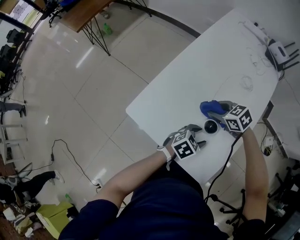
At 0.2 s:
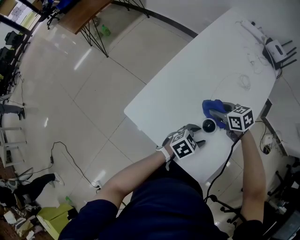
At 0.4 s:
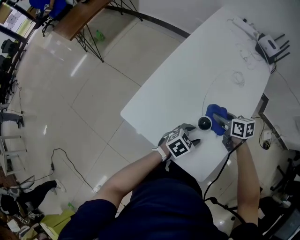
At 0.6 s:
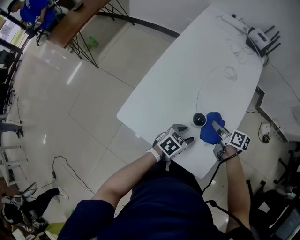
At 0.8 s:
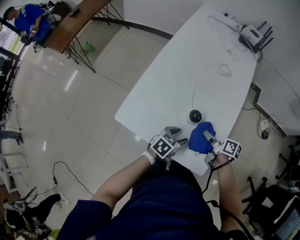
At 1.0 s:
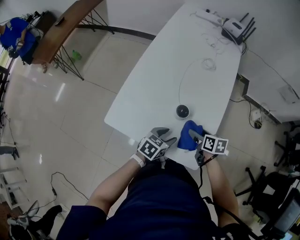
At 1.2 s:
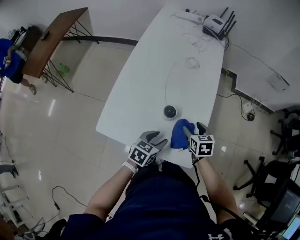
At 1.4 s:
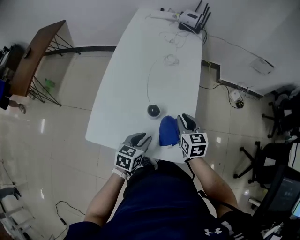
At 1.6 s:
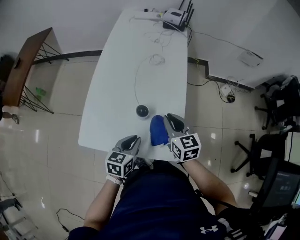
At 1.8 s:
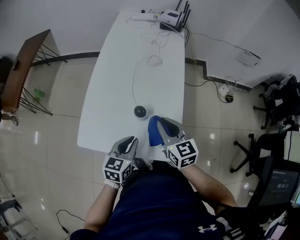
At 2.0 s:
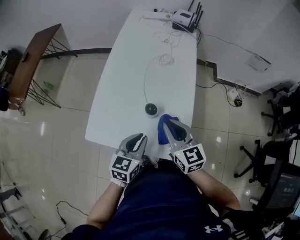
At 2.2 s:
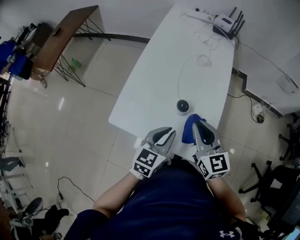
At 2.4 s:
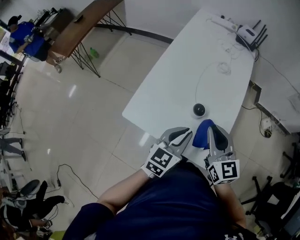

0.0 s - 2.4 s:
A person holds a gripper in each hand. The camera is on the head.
0.0 s - 1.2 s: The left gripper moves some 10 cm. Meanwhile the right gripper moves some 20 cm, and rotates some 60 degrees.
1.2 s - 2.4 s: The right gripper goes roughly 20 cm upward, points its fingers approximately 40 degrees further upward, and closes up. Meanwhile the left gripper heads upward, covering some 15 cm, rotates some 30 degrees, and closes up.

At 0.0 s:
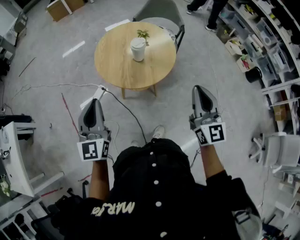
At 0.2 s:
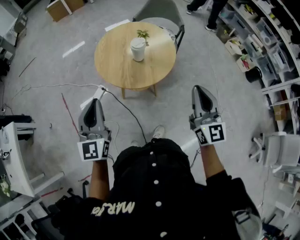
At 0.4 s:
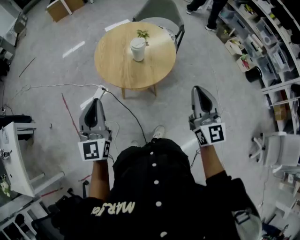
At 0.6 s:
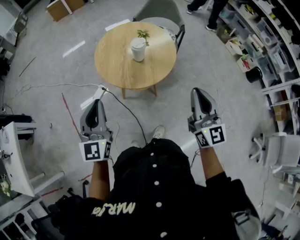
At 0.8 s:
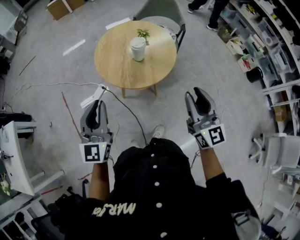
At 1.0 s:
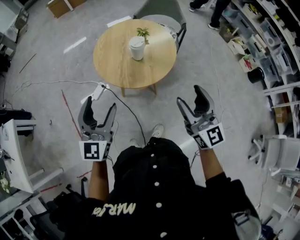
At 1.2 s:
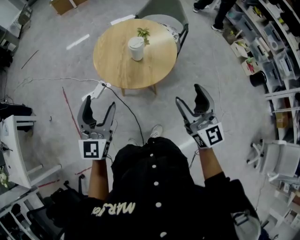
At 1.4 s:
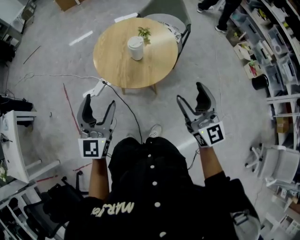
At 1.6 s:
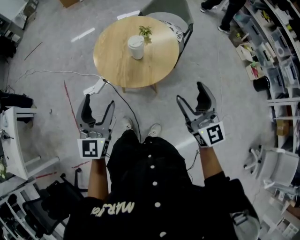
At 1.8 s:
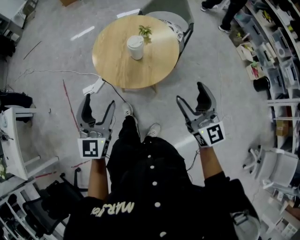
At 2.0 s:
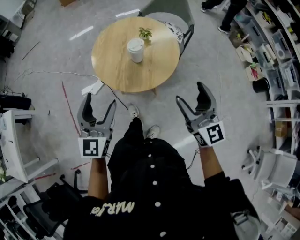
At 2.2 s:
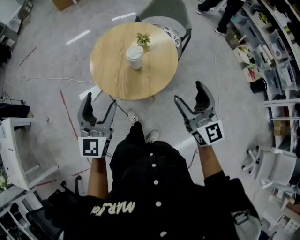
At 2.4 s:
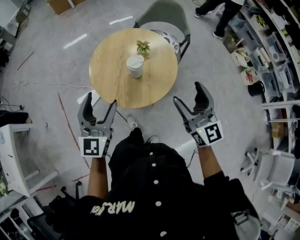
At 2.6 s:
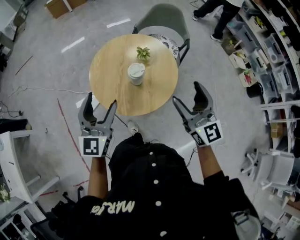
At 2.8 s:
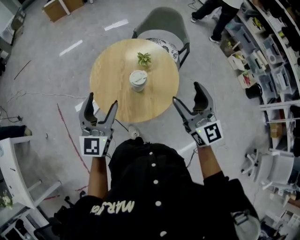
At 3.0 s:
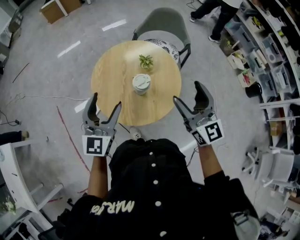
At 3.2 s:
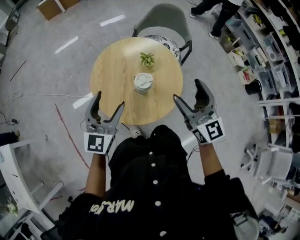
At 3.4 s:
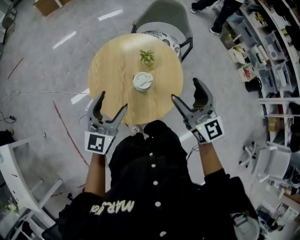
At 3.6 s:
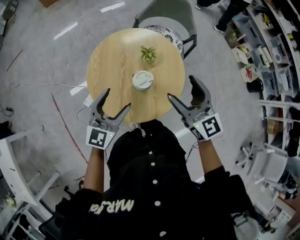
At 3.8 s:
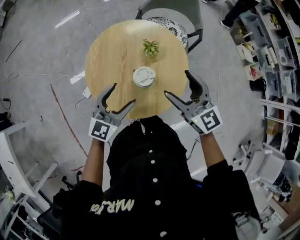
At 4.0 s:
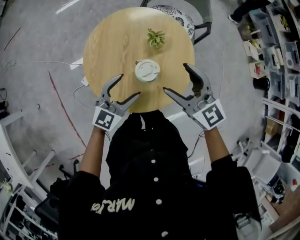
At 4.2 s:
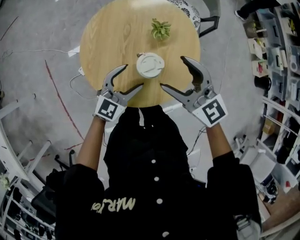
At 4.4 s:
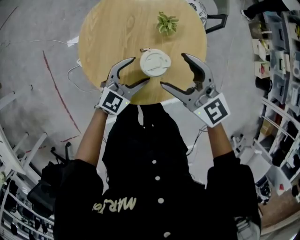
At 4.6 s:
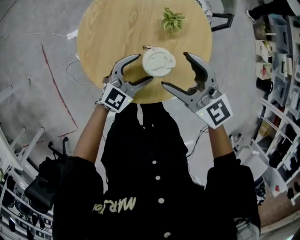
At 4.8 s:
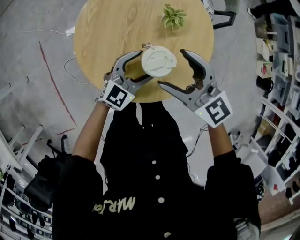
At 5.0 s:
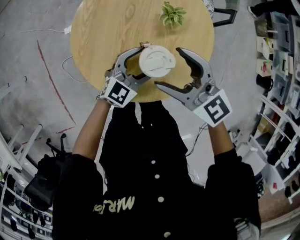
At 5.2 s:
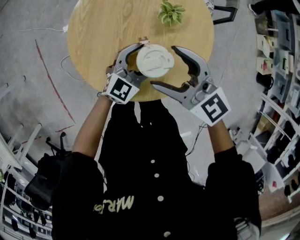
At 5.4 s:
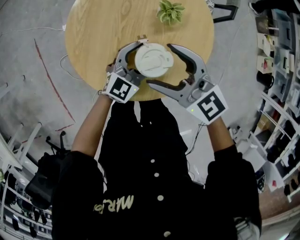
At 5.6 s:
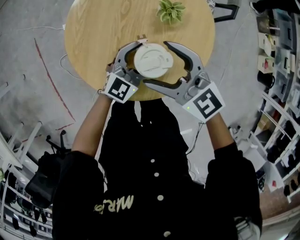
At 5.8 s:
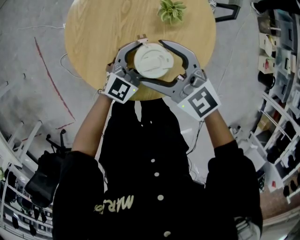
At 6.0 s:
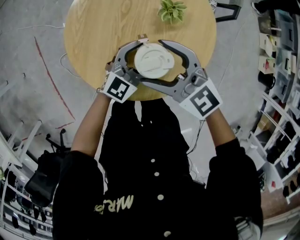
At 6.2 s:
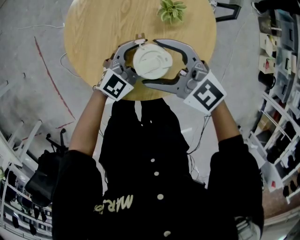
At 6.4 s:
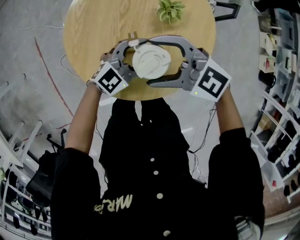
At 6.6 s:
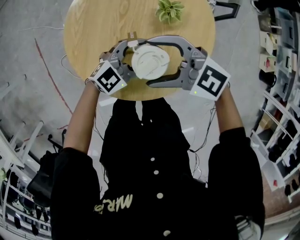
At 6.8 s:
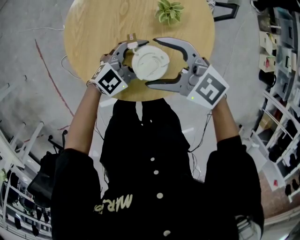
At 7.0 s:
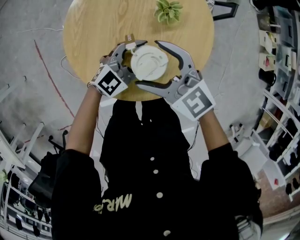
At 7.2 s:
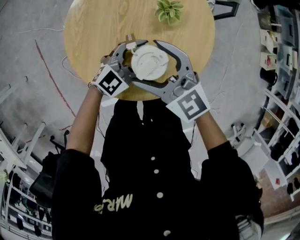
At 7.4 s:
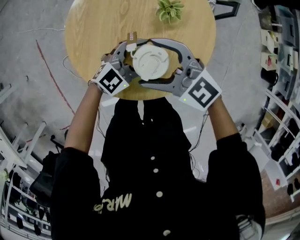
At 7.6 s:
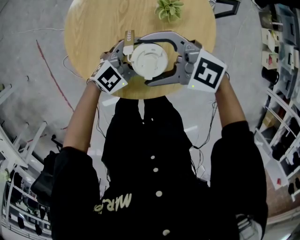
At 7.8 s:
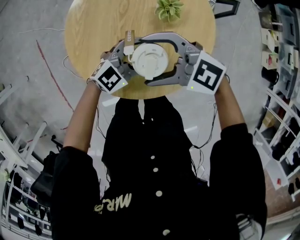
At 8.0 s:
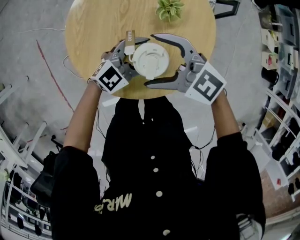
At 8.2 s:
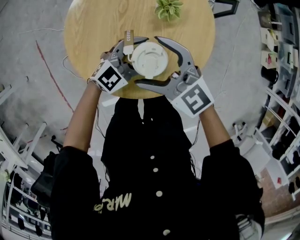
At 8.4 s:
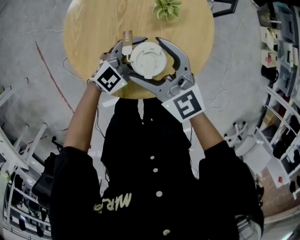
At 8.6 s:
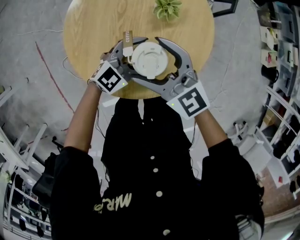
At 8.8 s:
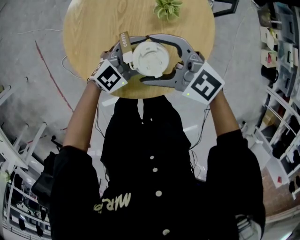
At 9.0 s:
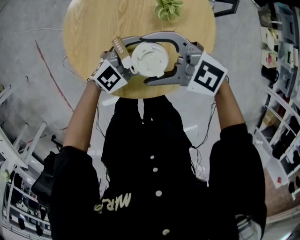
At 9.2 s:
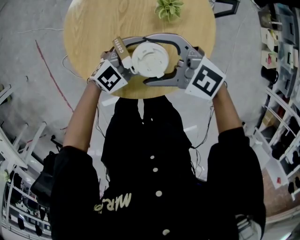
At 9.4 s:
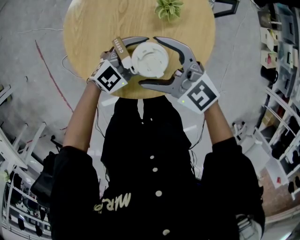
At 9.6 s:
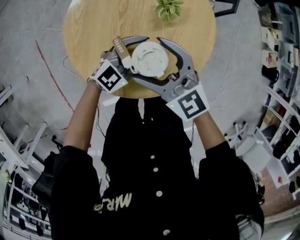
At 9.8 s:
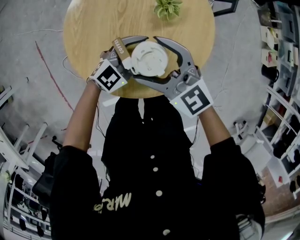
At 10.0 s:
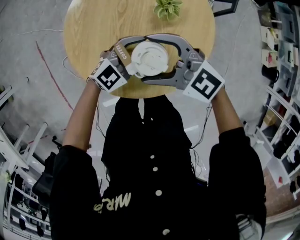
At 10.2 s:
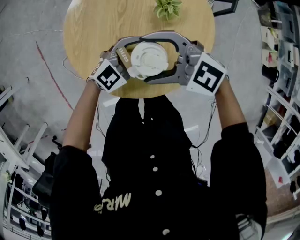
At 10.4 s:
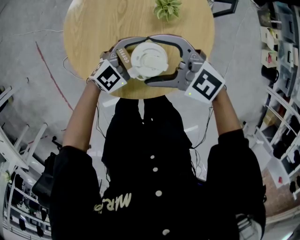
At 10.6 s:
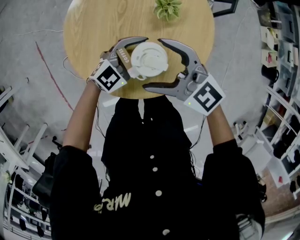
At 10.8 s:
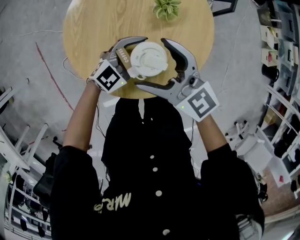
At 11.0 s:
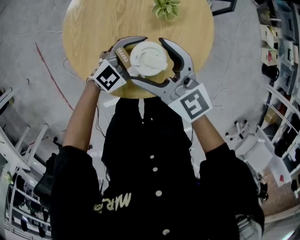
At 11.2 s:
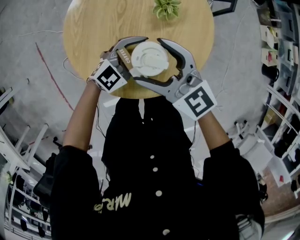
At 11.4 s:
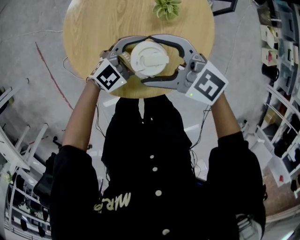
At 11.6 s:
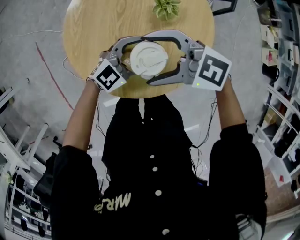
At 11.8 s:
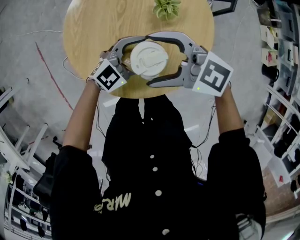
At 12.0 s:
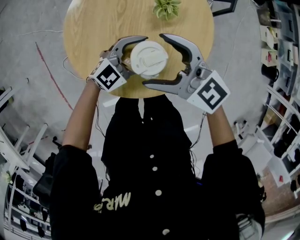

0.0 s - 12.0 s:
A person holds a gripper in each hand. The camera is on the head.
0.0 s - 1.6 s: The right gripper shifts roughly 5 cm forward, and opens up. The left gripper is displaced to the right by some 10 cm, and opens its fingers.
1.6 s - 3.0 s: The grippers both shift forward by about 25 cm.
3.0 s - 4.4 s: The right gripper moves downward, forward and to the left, some 25 cm, and swivels some 40 degrees; the left gripper heads downward and to the right, covering approximately 30 cm, and turns by approximately 30 degrees.
4.4 s - 6.0 s: The left gripper moves to the right, roughly 5 cm, while the right gripper moves downward and to the left, approximately 10 cm.
6.0 s - 7.6 s: The right gripper rotates about 30 degrees; the left gripper rotates approximately 20 degrees.

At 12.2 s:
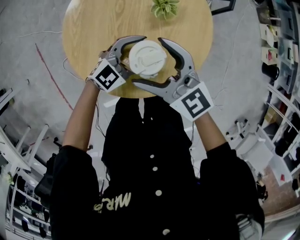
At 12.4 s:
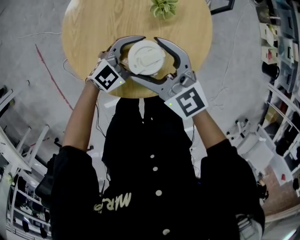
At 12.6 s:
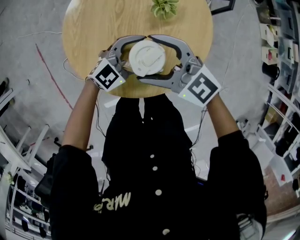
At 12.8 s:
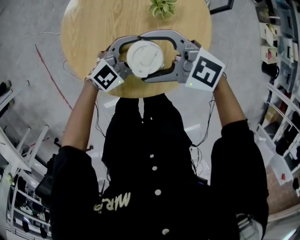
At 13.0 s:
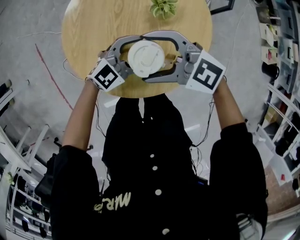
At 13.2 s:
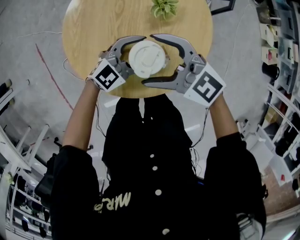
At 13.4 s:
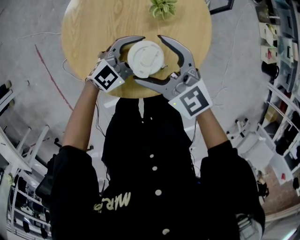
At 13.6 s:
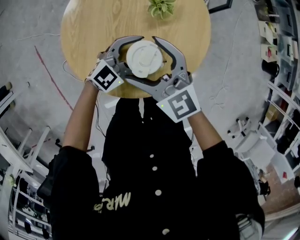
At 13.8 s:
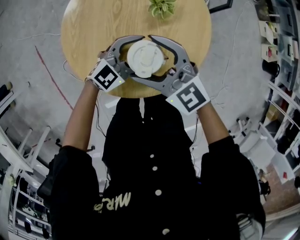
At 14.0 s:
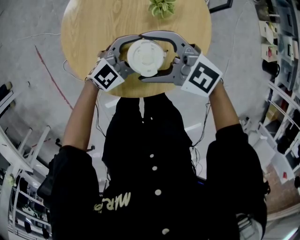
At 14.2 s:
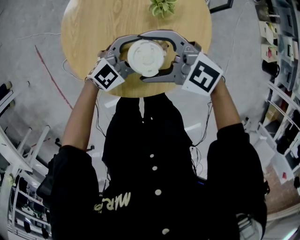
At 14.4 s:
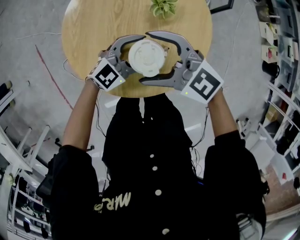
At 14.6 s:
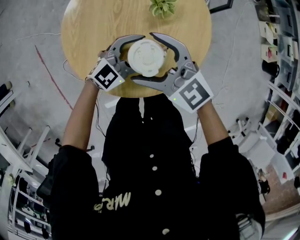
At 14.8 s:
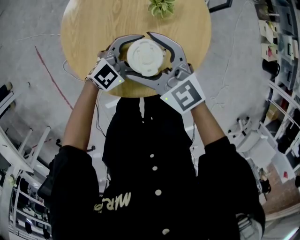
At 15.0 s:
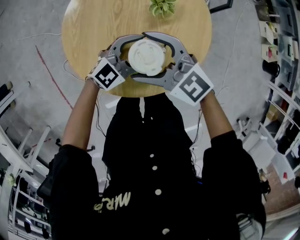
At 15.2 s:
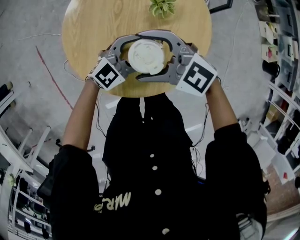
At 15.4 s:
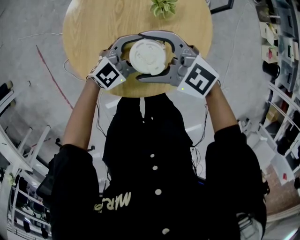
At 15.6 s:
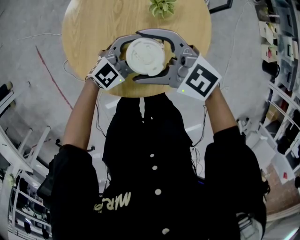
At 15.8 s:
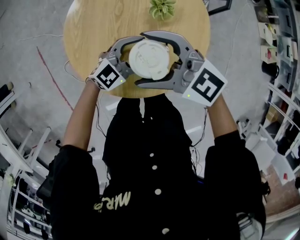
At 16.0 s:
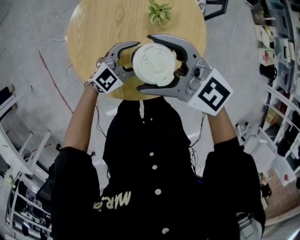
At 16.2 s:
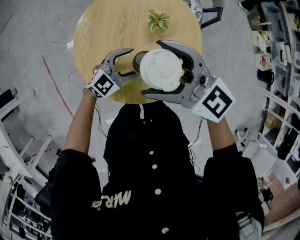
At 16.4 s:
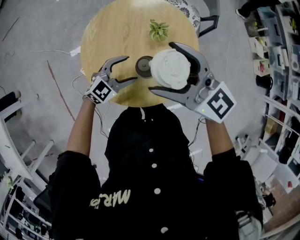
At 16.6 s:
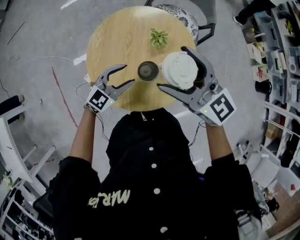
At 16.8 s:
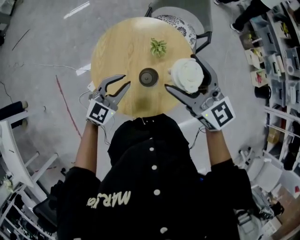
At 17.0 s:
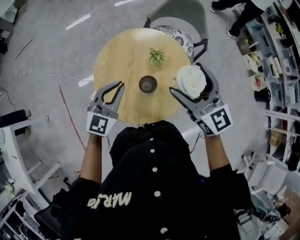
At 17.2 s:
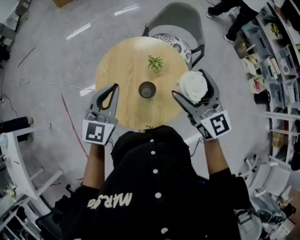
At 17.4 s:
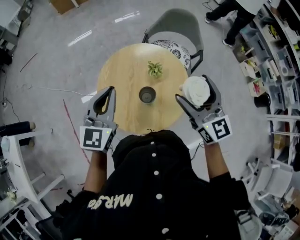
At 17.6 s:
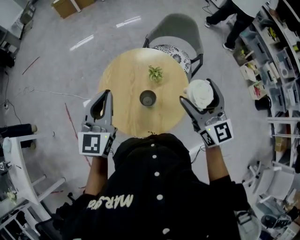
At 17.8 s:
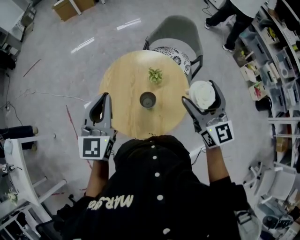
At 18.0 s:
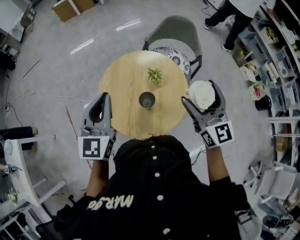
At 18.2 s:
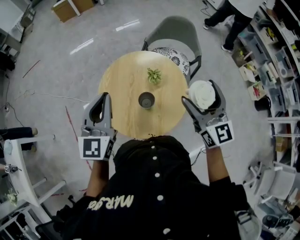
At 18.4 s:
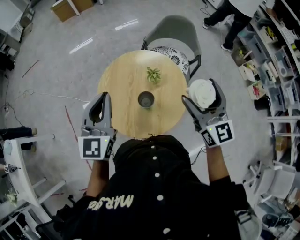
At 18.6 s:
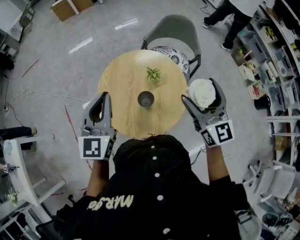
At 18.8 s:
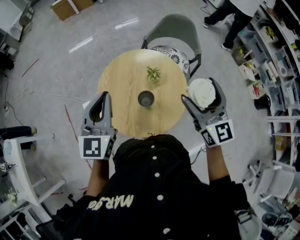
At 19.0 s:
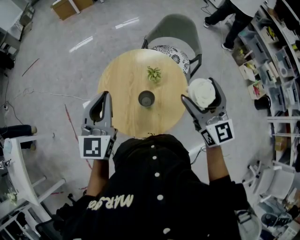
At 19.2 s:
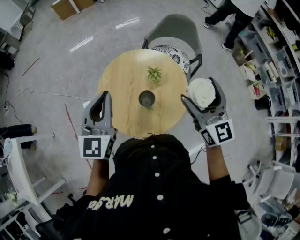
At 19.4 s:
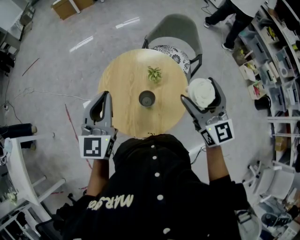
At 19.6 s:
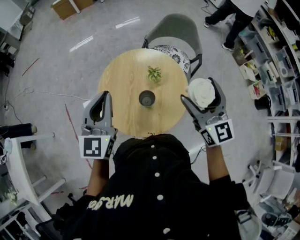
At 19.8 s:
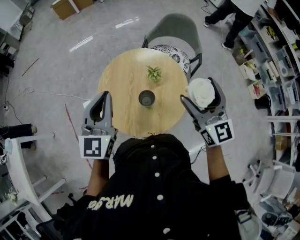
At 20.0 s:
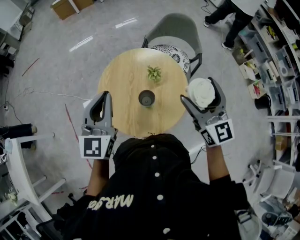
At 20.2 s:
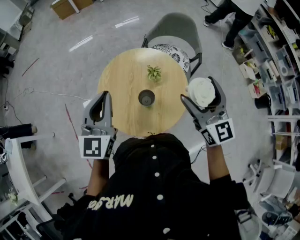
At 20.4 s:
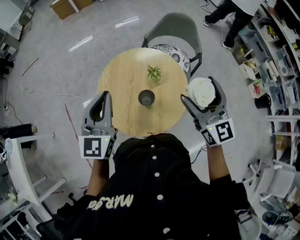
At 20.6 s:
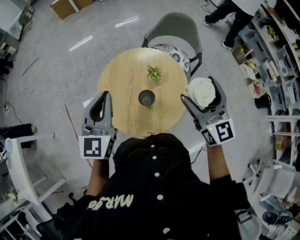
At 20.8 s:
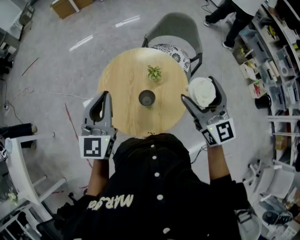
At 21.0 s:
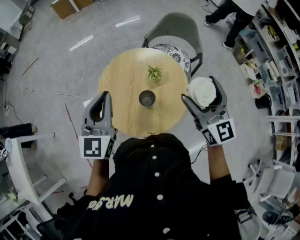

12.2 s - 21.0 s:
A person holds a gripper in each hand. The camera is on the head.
13.6 s - 15.2 s: The right gripper rotates some 30 degrees.
15.2 s - 16.6 s: The left gripper moves upward, approximately 10 cm. The right gripper is displaced upward by some 20 cm, and changes its angle by roughly 40 degrees.
16.6 s - 18.0 s: The right gripper moves to the right and upward, approximately 15 cm, and swivels approximately 30 degrees; the left gripper moves upward, roughly 30 cm, swivels approximately 40 degrees, and closes.
18.0 s - 21.0 s: The two grippers keep their place.
